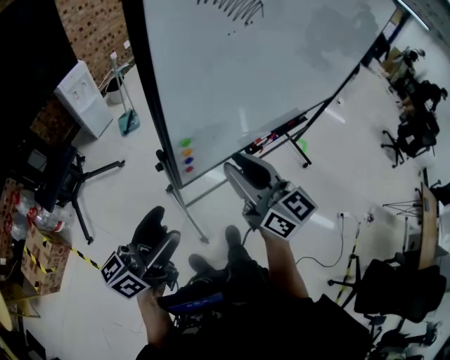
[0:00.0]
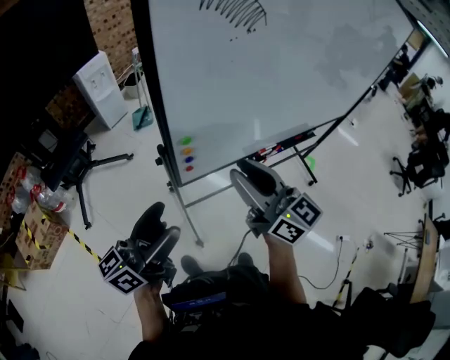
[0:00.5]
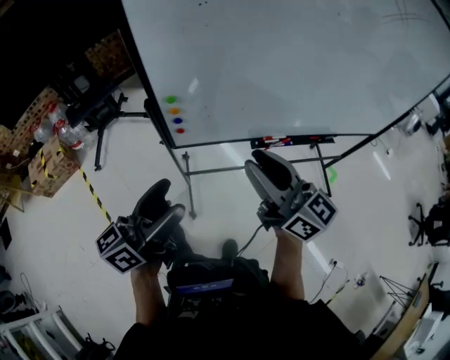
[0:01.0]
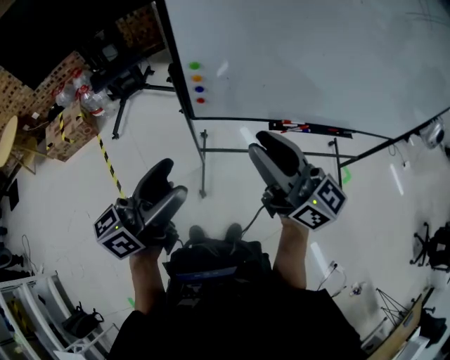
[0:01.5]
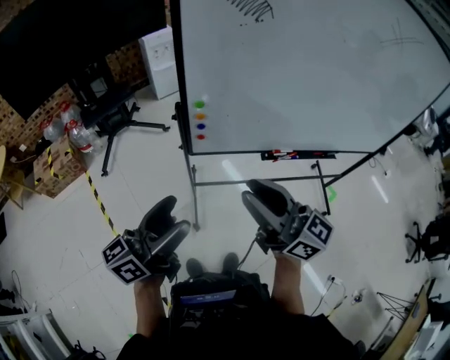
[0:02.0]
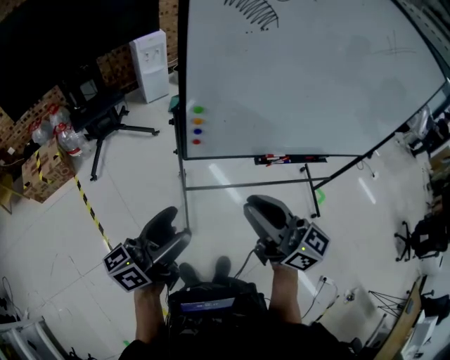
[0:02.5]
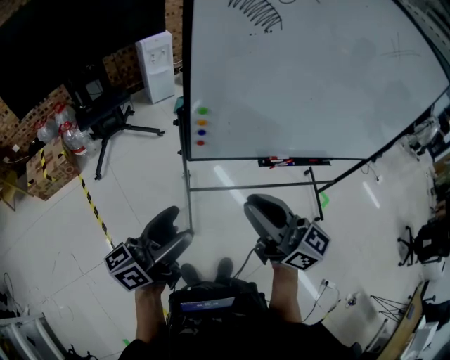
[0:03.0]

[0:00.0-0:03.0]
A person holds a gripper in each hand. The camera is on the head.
0:00.0 to 0:01.5: The left gripper moves about 20 cm, and turns by about 30 degrees; the right gripper moves approximately 15 cm, and turns by approximately 40 degrees.
0:01.5 to 0:03.0: The grippers both shift to the left by approximately 5 cm.

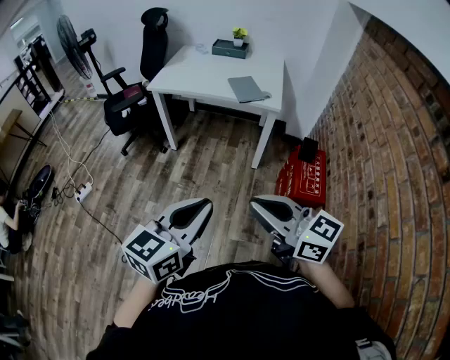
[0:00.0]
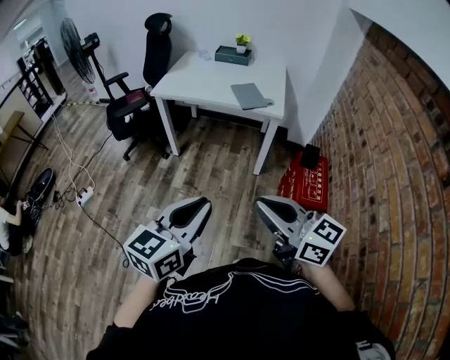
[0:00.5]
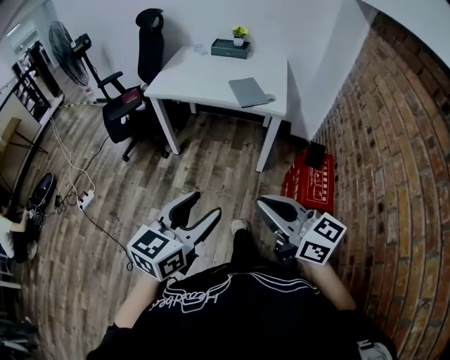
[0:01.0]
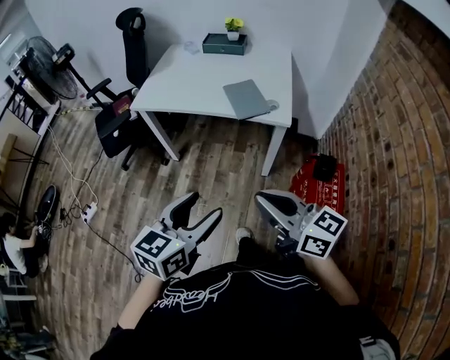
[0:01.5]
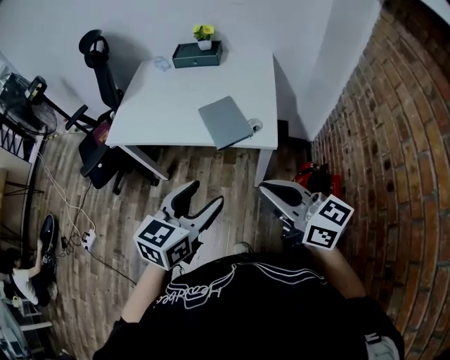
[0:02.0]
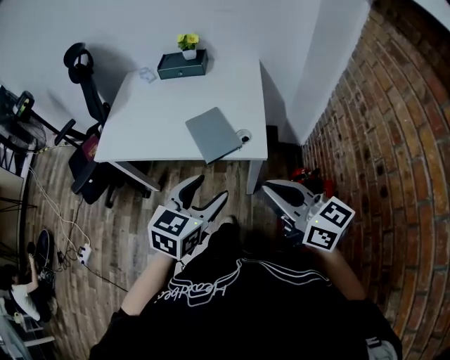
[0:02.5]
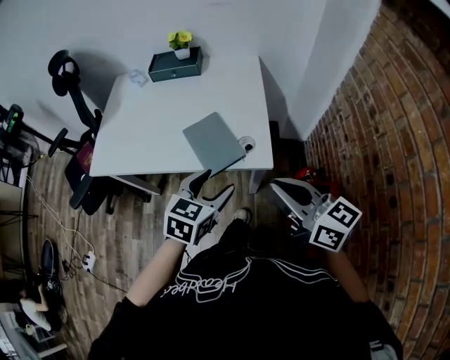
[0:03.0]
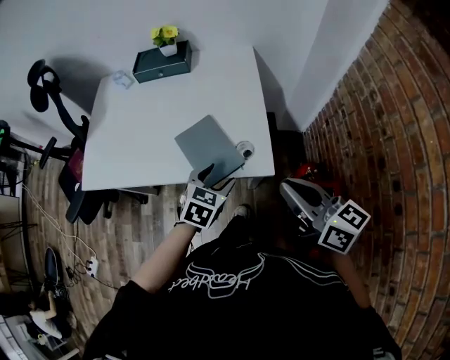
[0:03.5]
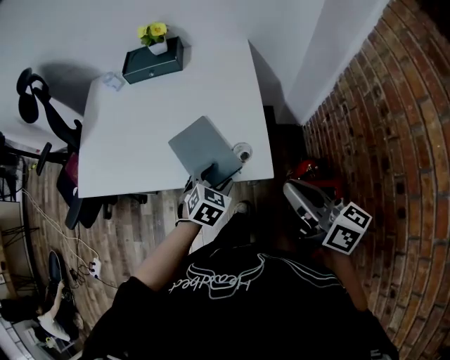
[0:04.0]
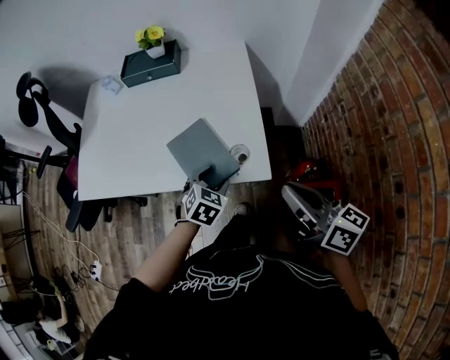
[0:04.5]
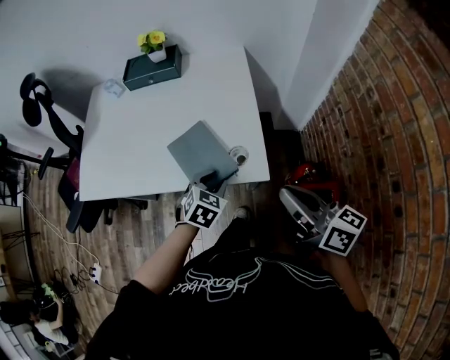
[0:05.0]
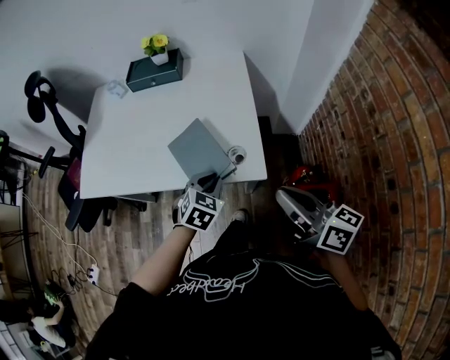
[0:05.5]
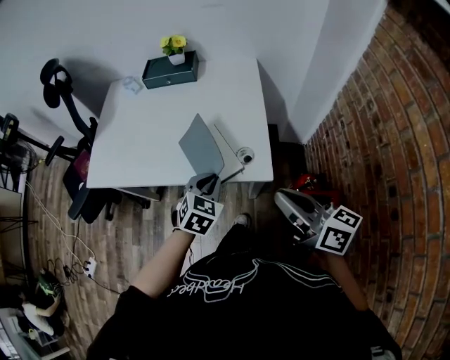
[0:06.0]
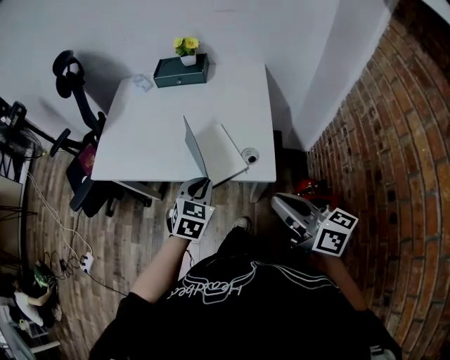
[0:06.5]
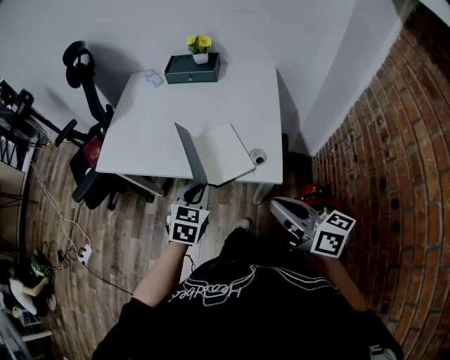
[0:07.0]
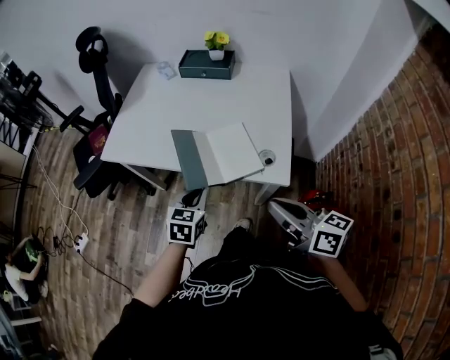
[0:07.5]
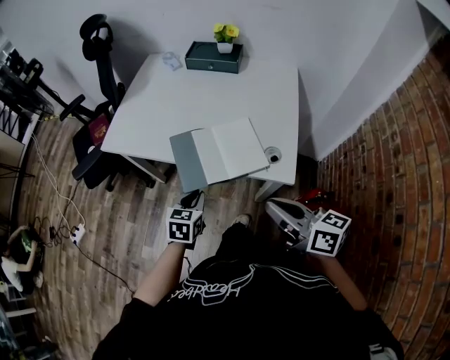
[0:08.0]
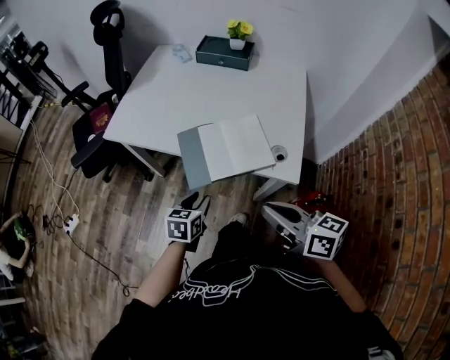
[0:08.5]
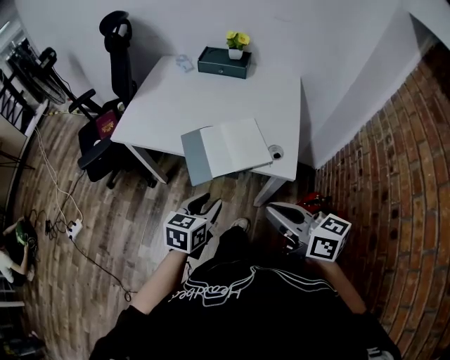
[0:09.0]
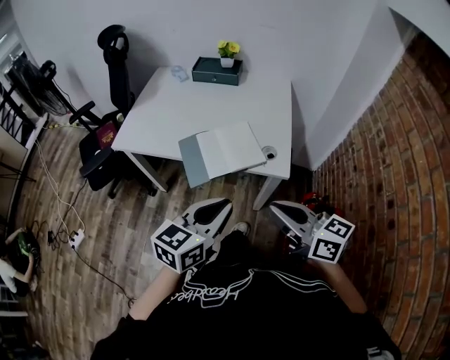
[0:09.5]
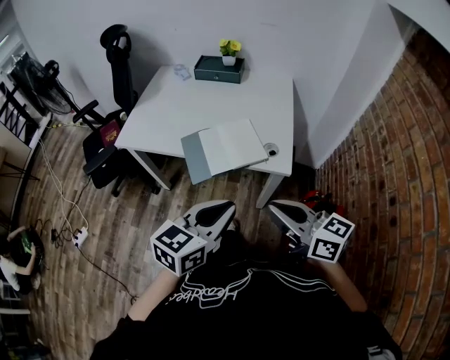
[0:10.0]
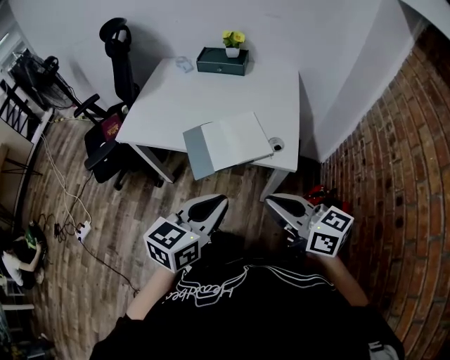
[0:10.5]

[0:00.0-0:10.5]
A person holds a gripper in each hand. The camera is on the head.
0:00.0 to 0:02.0: The two grippers travel together, forward, approximately 40 cm. The left gripper opens its fingers.
0:02.0 to 0:04.0: The right gripper is displaced forward and to the right by approximately 20 cm, and swivels about 30 degrees. Meanwhile the left gripper moves forward and downward, some 35 cm, and points its fingers about 30 degrees further downward.
0:04.0 to 0:06.5: The left gripper is displaced upward and to the left by approximately 10 cm, and closes, while the right gripper is displaced backward by about 5 cm.
0:06.5 to 0:08.5: The right gripper shifts about 10 cm to the left. Meanwhile the left gripper shifts about 15 cm to the left and downward, swivels about 40 degrees, and opens.
0:08.5 to 0:10.5: The right gripper heads upward, covering approximately 5 cm. The left gripper goes roughly 25 cm upward and backward, swivels roughly 30 degrees, and closes.

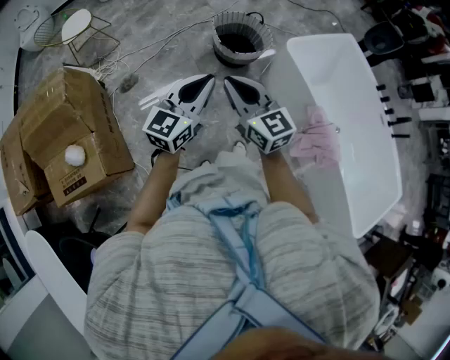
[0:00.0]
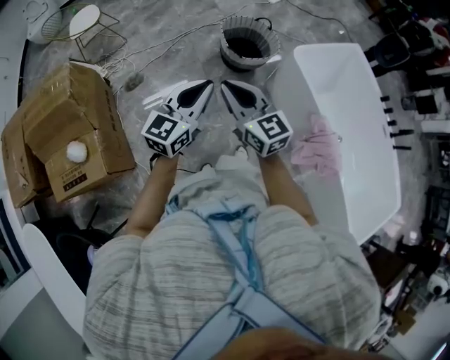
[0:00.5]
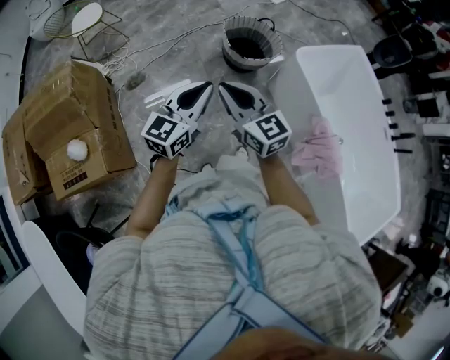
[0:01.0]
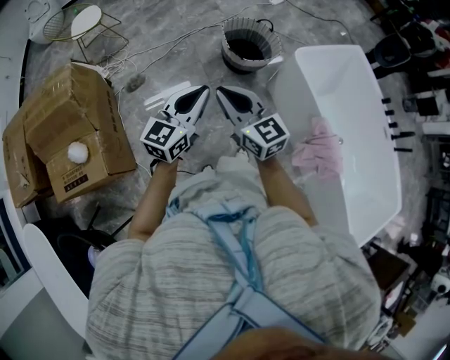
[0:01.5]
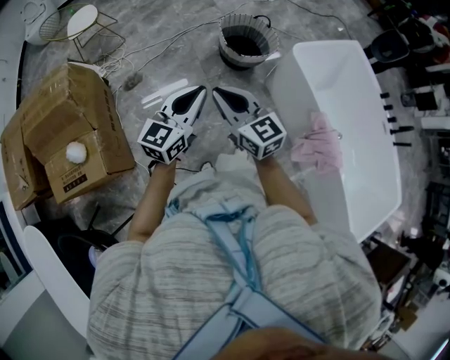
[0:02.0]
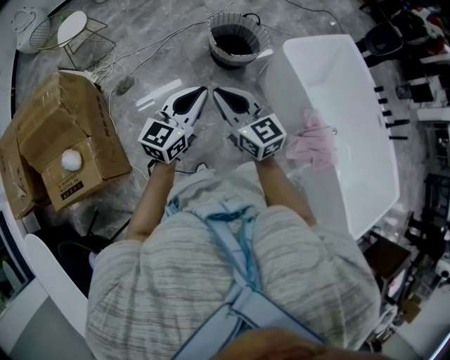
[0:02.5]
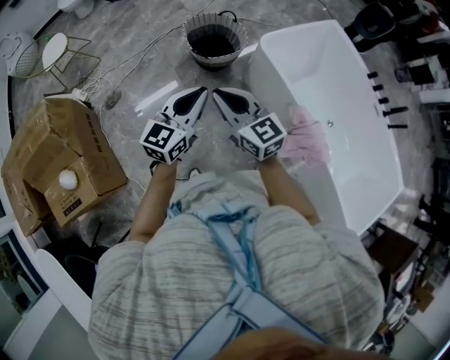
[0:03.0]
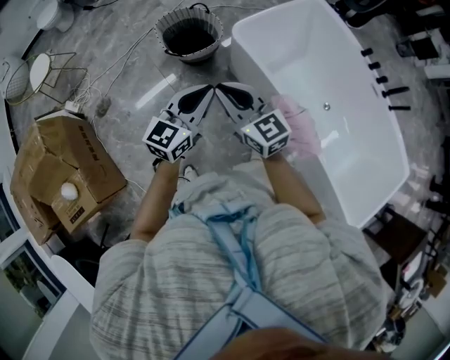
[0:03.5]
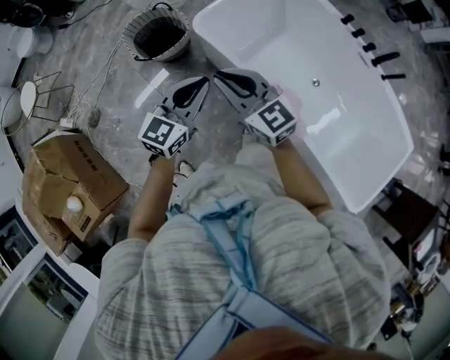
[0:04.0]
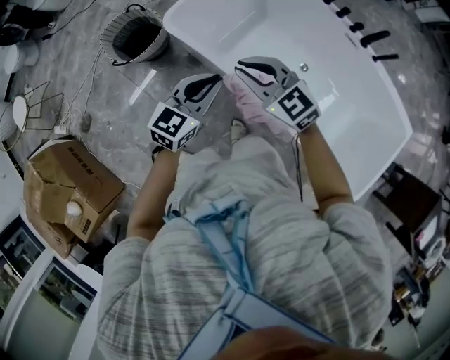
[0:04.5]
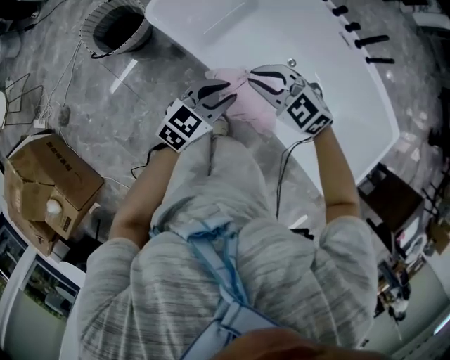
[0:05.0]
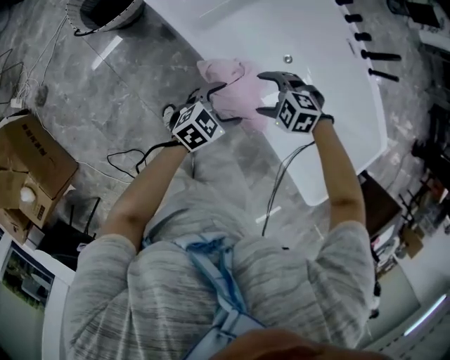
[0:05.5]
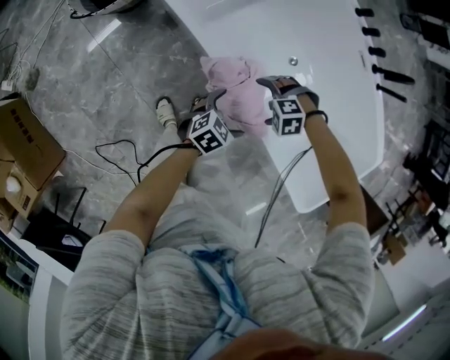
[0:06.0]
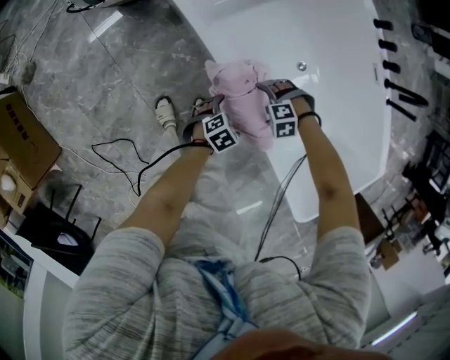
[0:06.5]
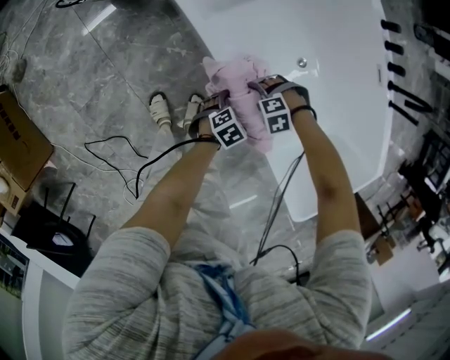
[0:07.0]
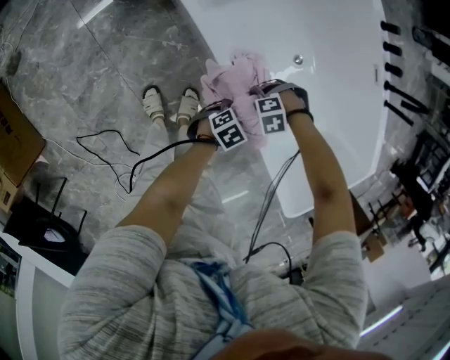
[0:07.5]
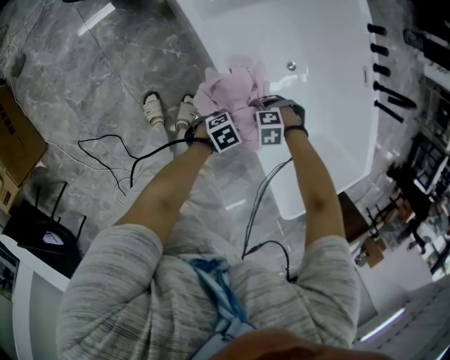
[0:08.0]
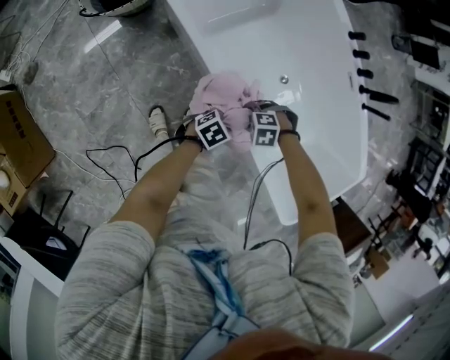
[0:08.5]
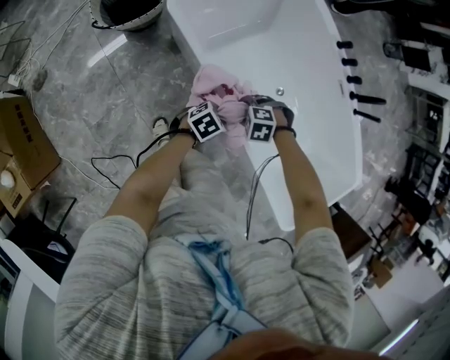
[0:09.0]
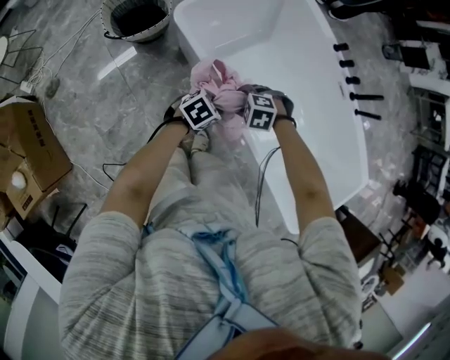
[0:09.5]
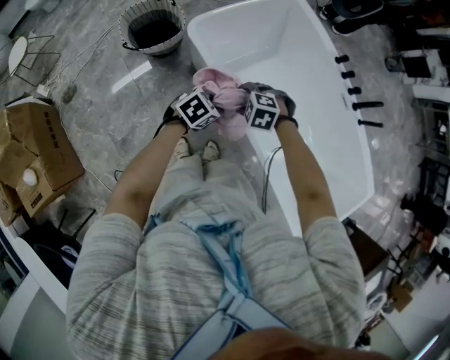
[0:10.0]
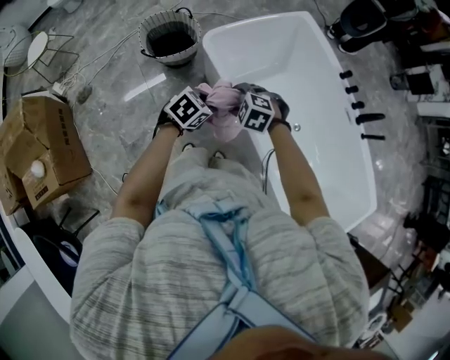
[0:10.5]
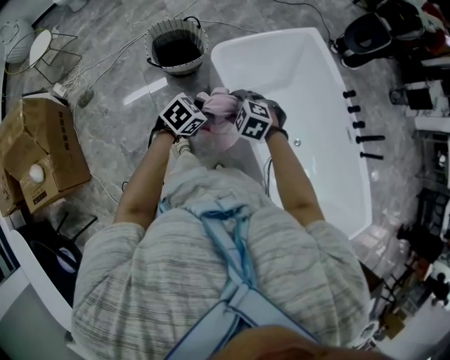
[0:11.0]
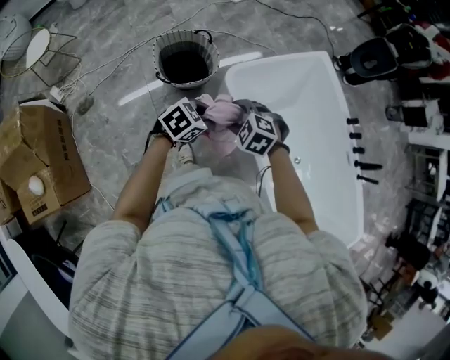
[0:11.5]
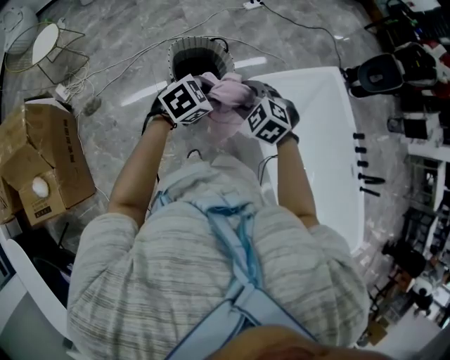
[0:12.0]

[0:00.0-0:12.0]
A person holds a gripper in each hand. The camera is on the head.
0:00.0 to 0:02.0: The right gripper ends up some 5 cm from where it was.
0:02.0 to 0:04.0: The two grippers travel together, to the right, approximately 50 cm. The left gripper rotates some 30 degrees.
0:04.0 to 0:06.0: Both grippers travel together downward, some 40 cm. The right gripper tilts its fingers some 70 degrees downward, and opens; the left gripper angles its fingers downward, by about 30 degrees, and opens up.
0:06.0 to 0:08.0: The two grippers go roughly 10 cm downward. The left gripper turns by approximately 20 degrees, and closes. Meanwhile the right gripper closes.
0:08.0 to 0:10.0: Both grippers move upward, some 25 cm. The right gripper changes its angle by approximately 40 degrees, while the left gripper swivels about 20 degrees.
0:10.0 to 0:12.0: The right gripper ends up roughly 40 cm from where it was, while the left gripper ends up some 40 cm from where it was.

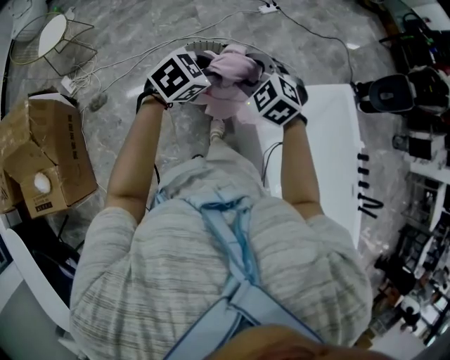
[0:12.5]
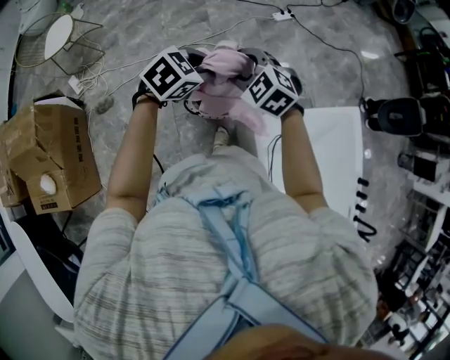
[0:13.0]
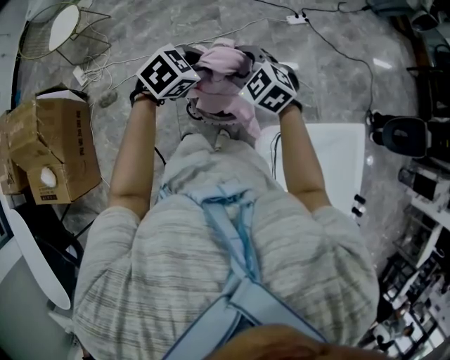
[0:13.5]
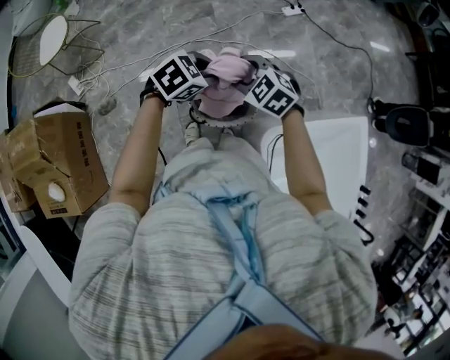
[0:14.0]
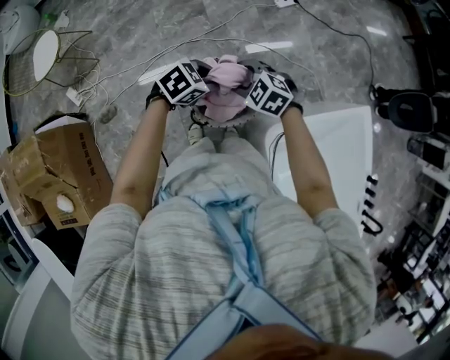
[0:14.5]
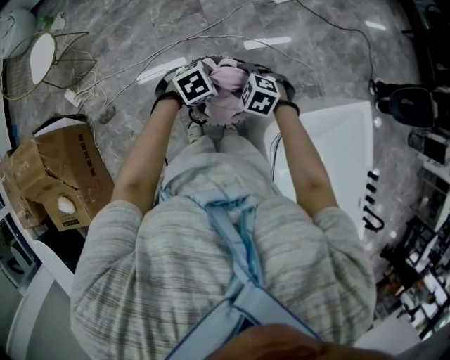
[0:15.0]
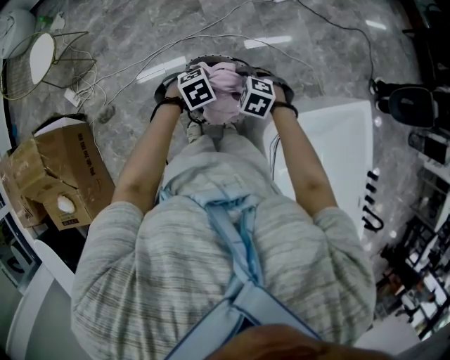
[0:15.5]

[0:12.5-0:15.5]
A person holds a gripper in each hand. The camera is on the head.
0:12.5 to 0:14.0: The left gripper changes place by approximately 25 cm. Meanwhile the right gripper ends up some 25 cm from where it was.
0:14.0 to 0:15.5: The grippers both shift downward by about 15 cm. The left gripper rotates about 20 degrees.
